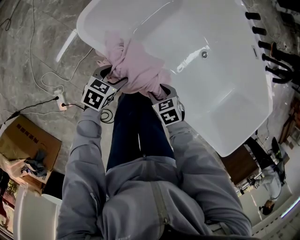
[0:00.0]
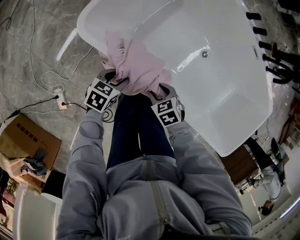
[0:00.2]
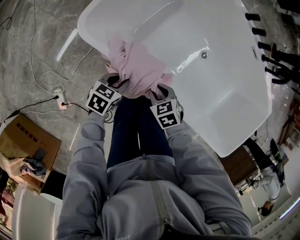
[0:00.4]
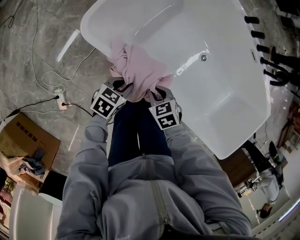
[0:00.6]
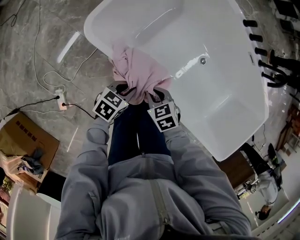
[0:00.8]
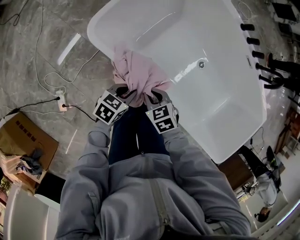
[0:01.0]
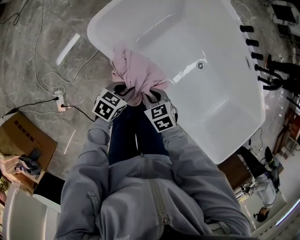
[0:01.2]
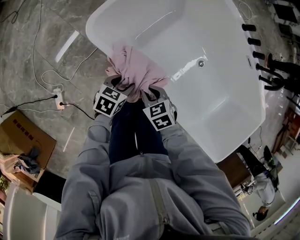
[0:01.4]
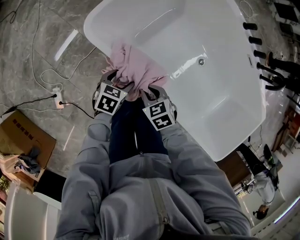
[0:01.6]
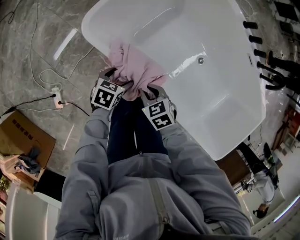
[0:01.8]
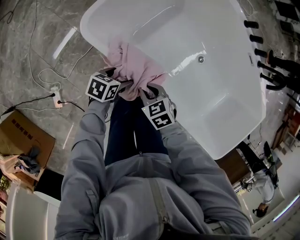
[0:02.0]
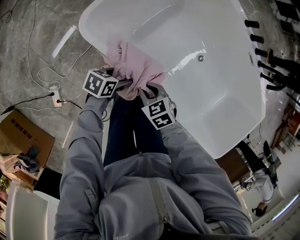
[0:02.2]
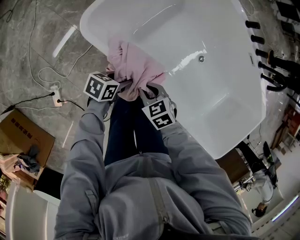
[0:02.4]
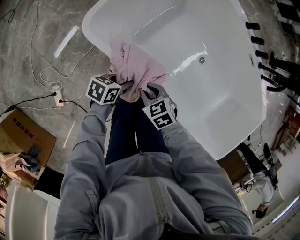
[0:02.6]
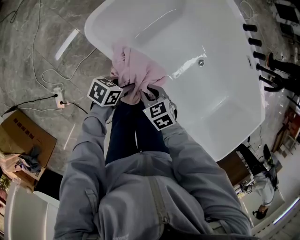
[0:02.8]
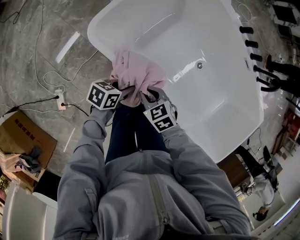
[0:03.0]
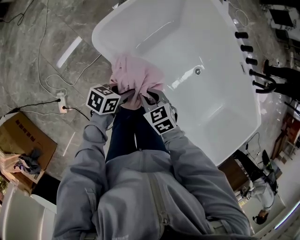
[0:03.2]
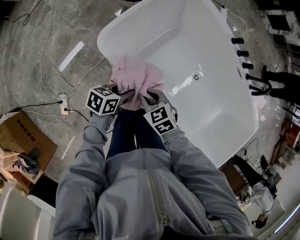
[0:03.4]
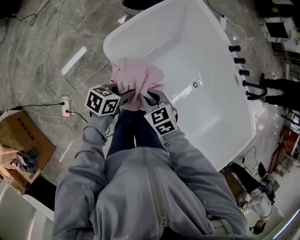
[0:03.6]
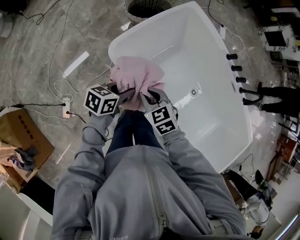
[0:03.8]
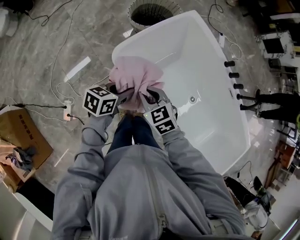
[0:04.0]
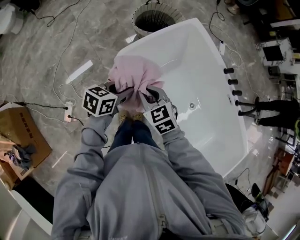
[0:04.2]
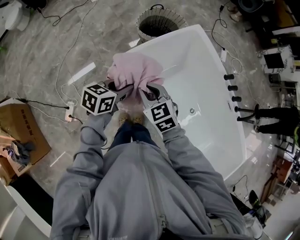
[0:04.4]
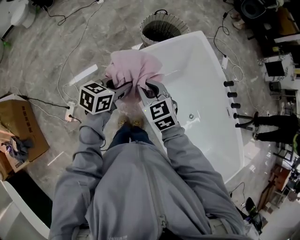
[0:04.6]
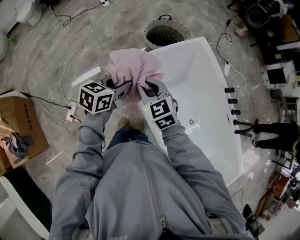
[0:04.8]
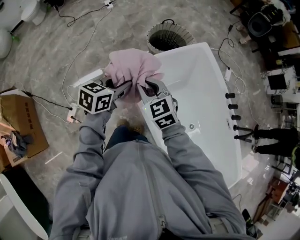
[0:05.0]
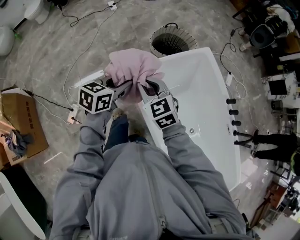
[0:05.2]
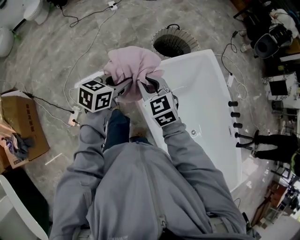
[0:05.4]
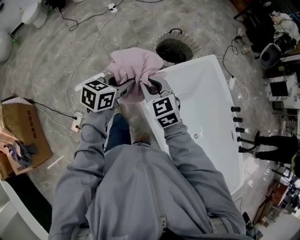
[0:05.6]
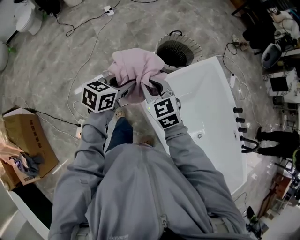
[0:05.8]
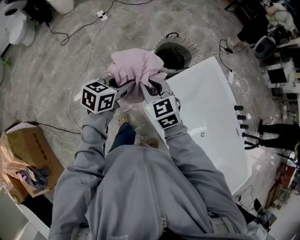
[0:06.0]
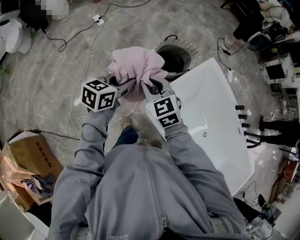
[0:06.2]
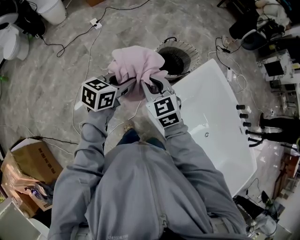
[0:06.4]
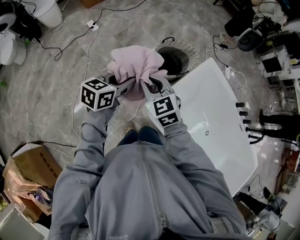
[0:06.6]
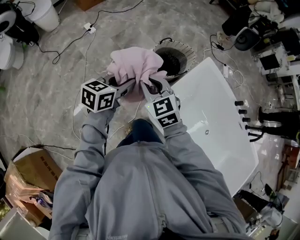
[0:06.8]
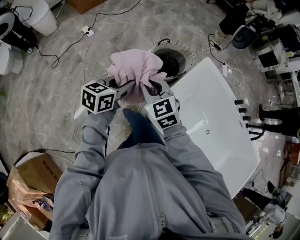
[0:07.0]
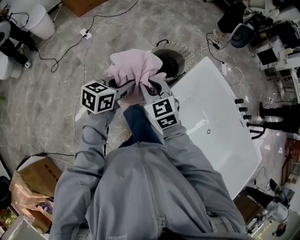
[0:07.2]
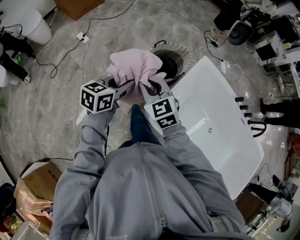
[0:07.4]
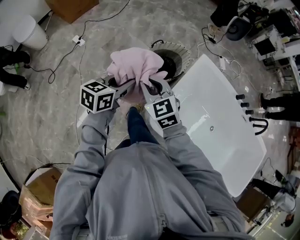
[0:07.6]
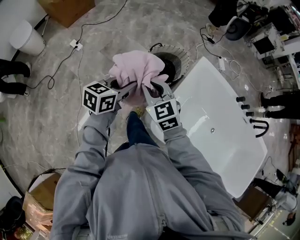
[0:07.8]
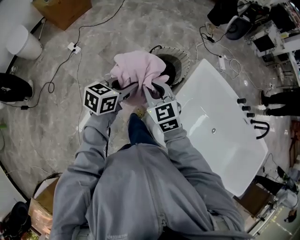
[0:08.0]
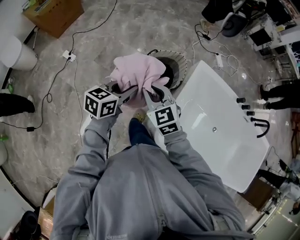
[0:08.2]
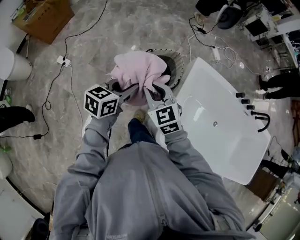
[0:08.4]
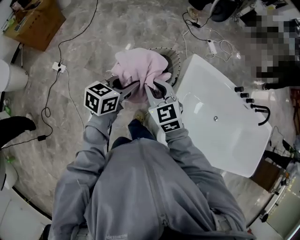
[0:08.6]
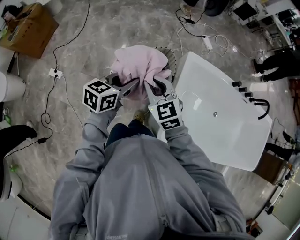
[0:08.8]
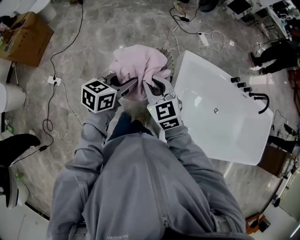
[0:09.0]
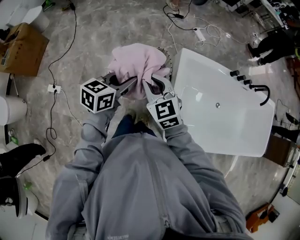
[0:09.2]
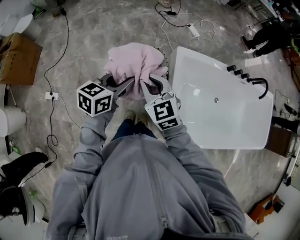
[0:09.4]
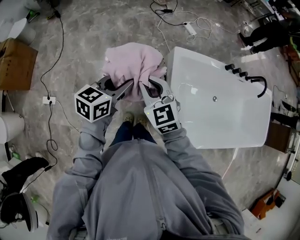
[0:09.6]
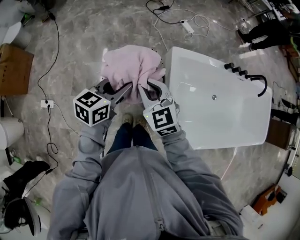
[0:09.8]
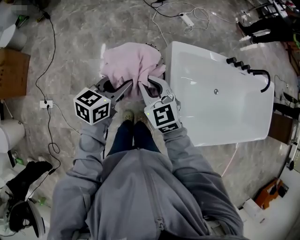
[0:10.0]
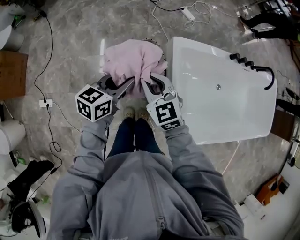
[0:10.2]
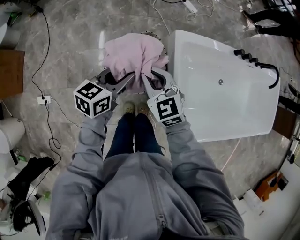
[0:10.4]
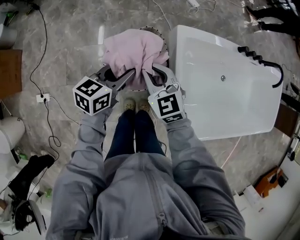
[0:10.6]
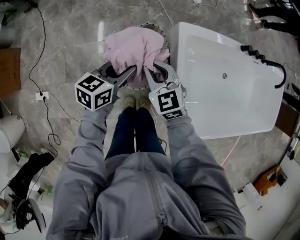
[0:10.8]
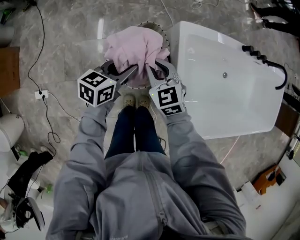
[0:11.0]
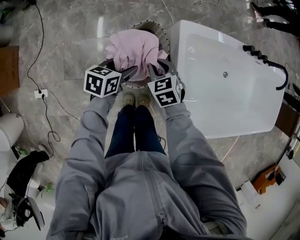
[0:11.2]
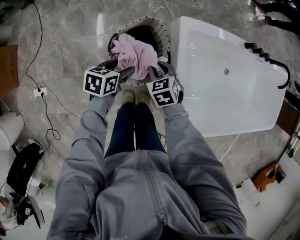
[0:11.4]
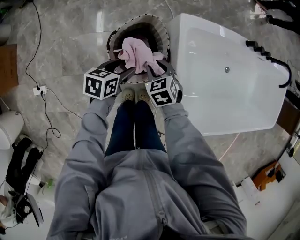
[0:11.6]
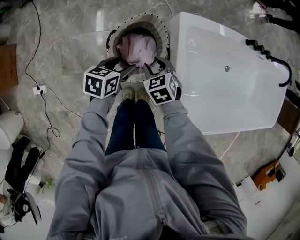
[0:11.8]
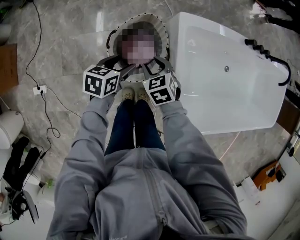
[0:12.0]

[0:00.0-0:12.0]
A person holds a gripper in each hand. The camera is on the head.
0:00.0 to 0:01.6: The right gripper shifts by approximately 10 cm, and closes its fingers; the left gripper closes, then reopens.
0:01.6 to 0:03.0: The left gripper moves about 5 cm, swivels some 30 degrees, and closes up.
0:03.0 to 0:04.4: Both grippers travel together upward, some 25 cm. The left gripper turns by roughly 30 degrees; the right gripper turns by some 30 degrees.
0:04.4 to 0:06.0: The grippers both shift forward and to the left by about 30 cm.
0:06.0 to 0:07.6: The grippers both shift forward by approximately 15 cm.
0:07.6 to 0:09.0: The left gripper shifts by some 25 cm, and rotates roughly 30 degrees. The right gripper moves approximately 25 cm, and swivels about 20 degrees.
0:09.0 to 0:10.4: Both grippers move forward and downward, some 15 cm.
0:10.4 to 0:12.0: Both grippers travel together downward, some 15 cm. The left gripper rotates roughly 20 degrees, and opens up. The right gripper swivels roughly 30 degrees, and opens.

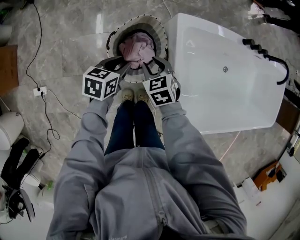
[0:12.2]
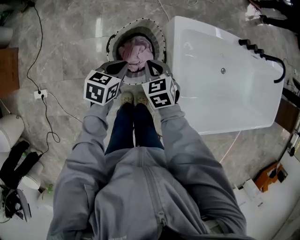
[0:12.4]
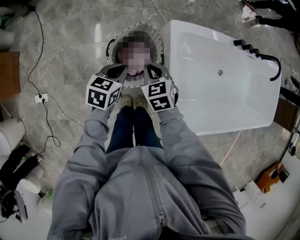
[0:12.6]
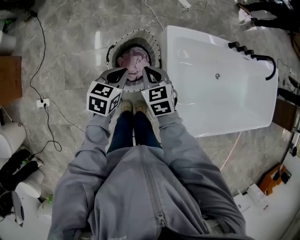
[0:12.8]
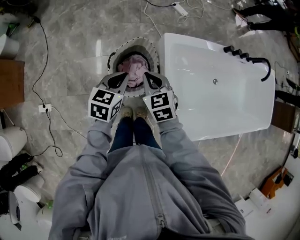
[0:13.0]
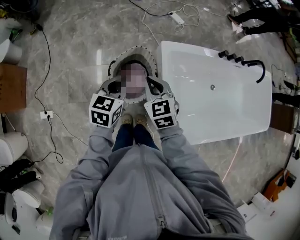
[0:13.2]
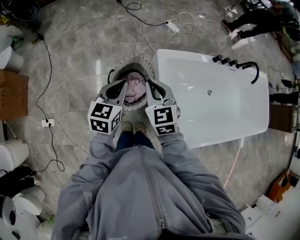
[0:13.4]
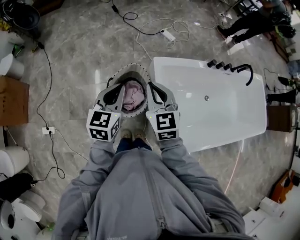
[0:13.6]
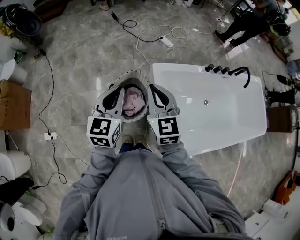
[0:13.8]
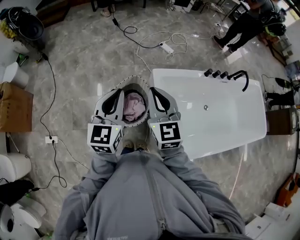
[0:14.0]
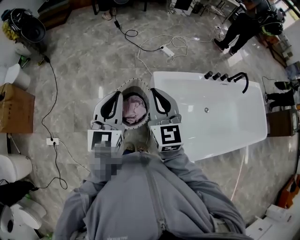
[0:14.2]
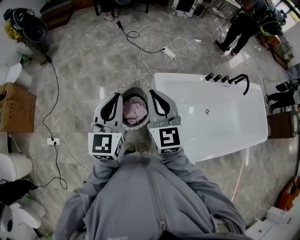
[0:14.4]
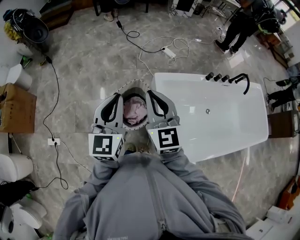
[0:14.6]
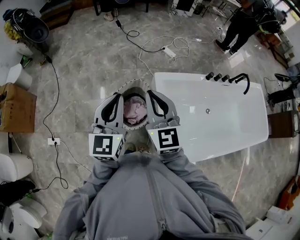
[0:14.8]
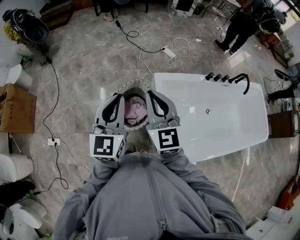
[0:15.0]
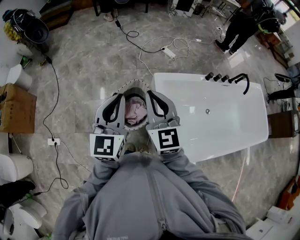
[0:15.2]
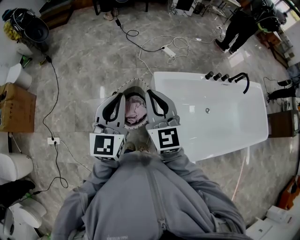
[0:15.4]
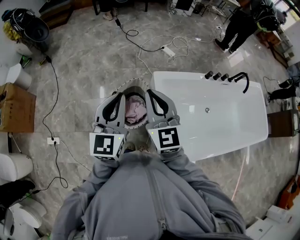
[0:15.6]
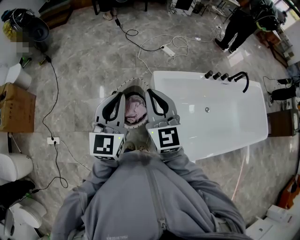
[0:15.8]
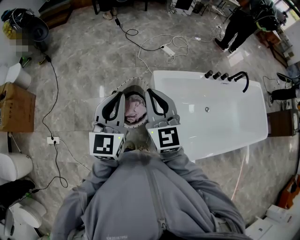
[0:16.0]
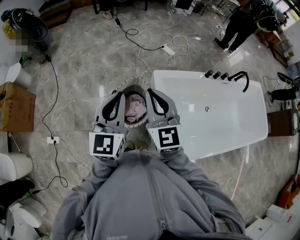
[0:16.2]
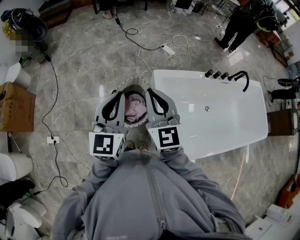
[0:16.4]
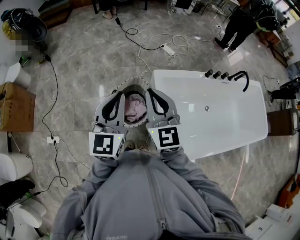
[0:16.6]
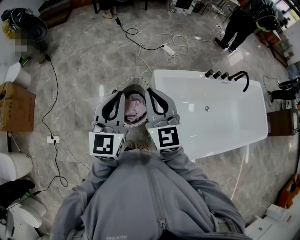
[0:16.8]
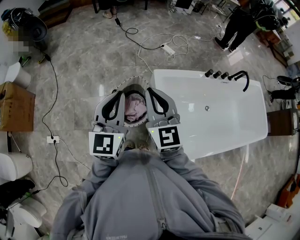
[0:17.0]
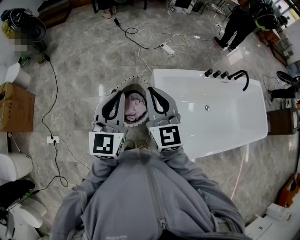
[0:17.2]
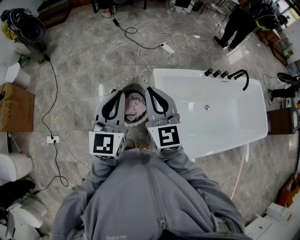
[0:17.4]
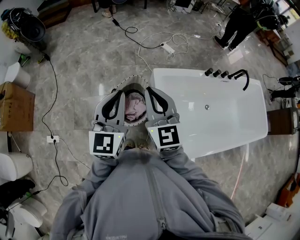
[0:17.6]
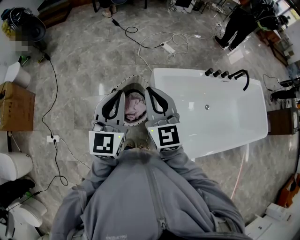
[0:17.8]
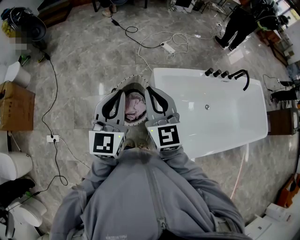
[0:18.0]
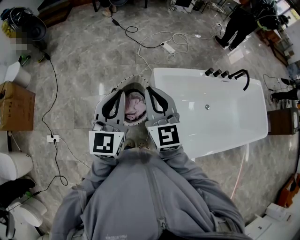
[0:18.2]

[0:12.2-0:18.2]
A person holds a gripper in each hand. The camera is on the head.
0:12.2 to 0:13.8: The two grippers go approximately 35 cm upward. The right gripper tips its fingers upward by approximately 40 degrees, and closes up. Meanwhile the left gripper tips its fingers upward by about 30 degrees, and closes its fingers.
0:13.8 to 0:15.2: Both grippers travel together upward, about 5 cm.
0:15.2 to 0:18.2: Both grippers stay put.

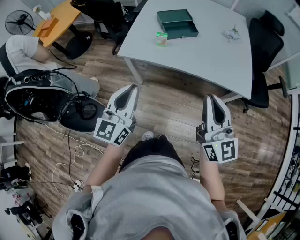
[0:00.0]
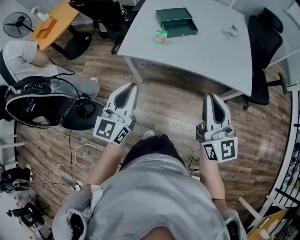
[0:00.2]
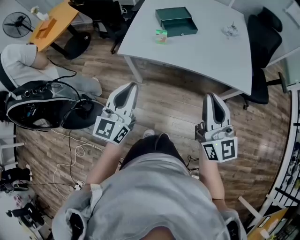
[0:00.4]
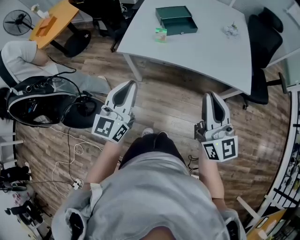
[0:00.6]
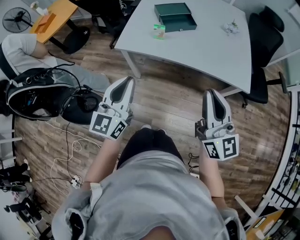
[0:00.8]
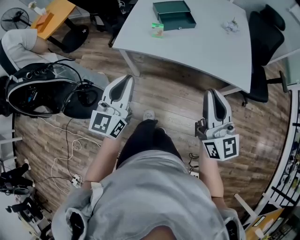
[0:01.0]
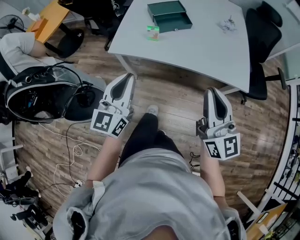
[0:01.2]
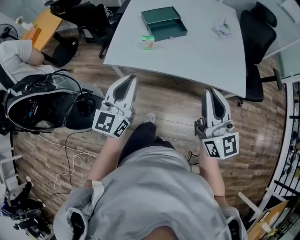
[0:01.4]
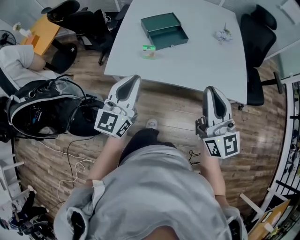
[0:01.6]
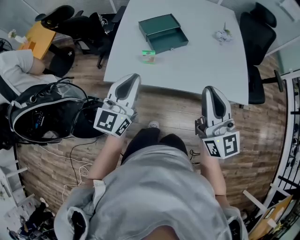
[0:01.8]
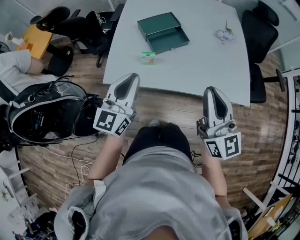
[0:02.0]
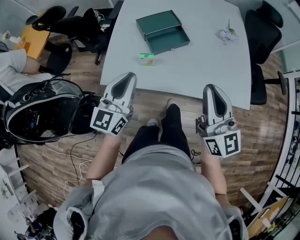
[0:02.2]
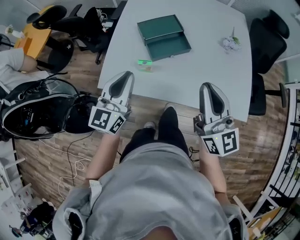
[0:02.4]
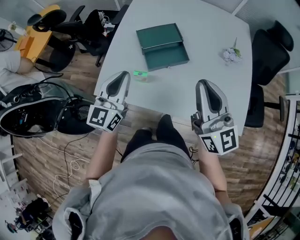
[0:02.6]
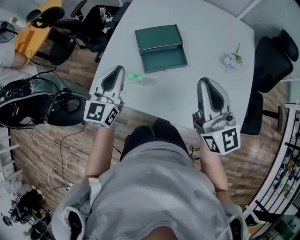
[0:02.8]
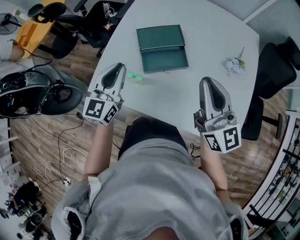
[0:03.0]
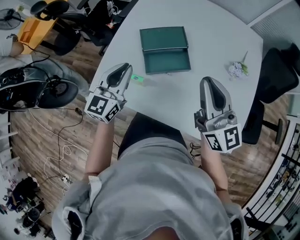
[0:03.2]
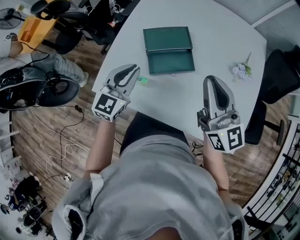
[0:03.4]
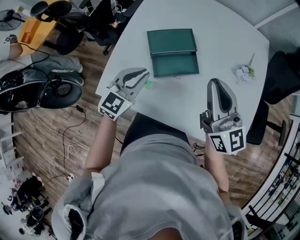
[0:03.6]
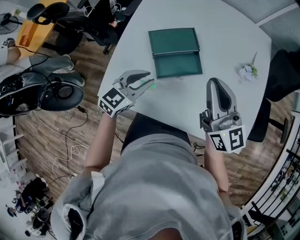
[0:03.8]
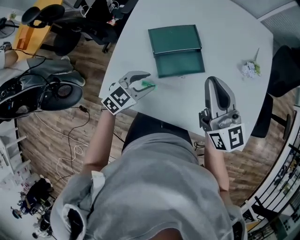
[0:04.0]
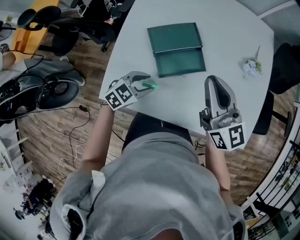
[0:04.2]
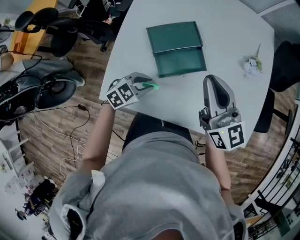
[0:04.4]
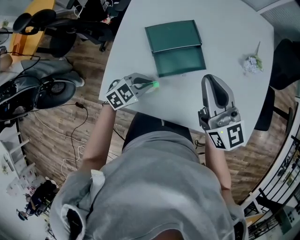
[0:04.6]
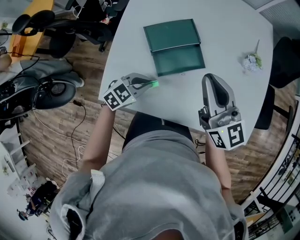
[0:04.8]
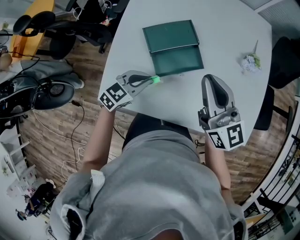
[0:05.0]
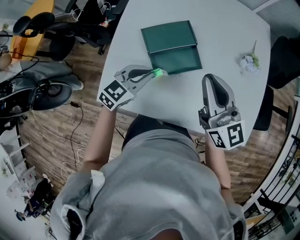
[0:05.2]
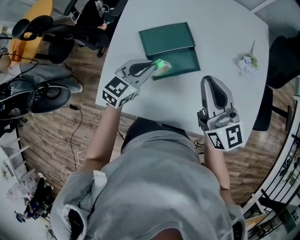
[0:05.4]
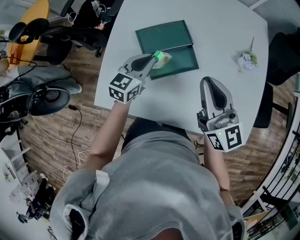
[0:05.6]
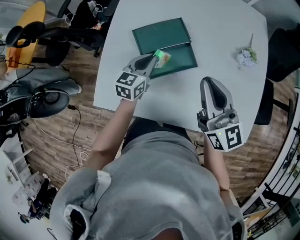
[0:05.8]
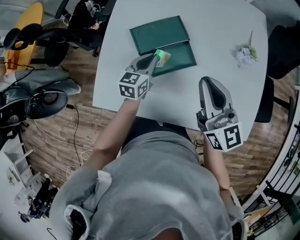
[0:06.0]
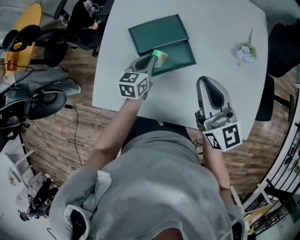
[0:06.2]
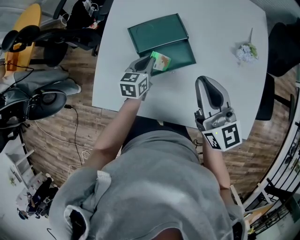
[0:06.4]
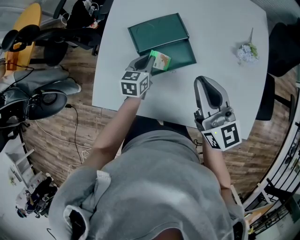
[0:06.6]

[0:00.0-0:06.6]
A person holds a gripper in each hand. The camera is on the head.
0:00.0 to 0:01.6: The grippers both shift forward by some 15 cm.
0:01.6 to 0:03.2: Both grippers travel together forward, roughly 35 cm.
0:03.2 to 0:05.0: The right gripper changes place by about 10 cm. Meanwhile the left gripper heads downward, covering approximately 15 cm, rotates some 50 degrees, and opens, then closes once more.
0:05.0 to 0:06.6: The left gripper is displaced forward and downward by roughly 15 cm, and swivels approximately 40 degrees.
